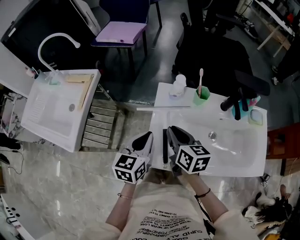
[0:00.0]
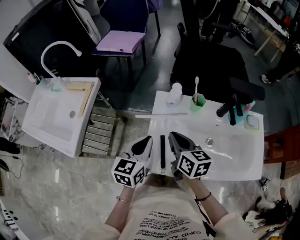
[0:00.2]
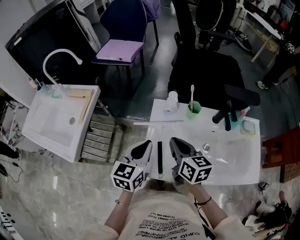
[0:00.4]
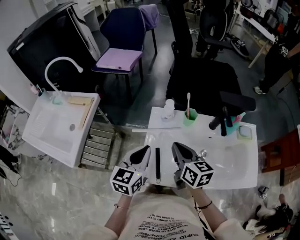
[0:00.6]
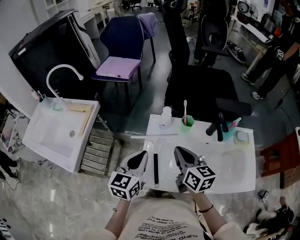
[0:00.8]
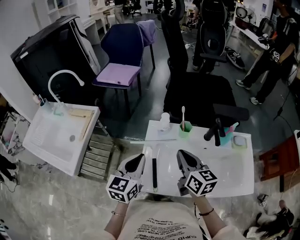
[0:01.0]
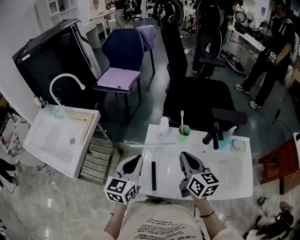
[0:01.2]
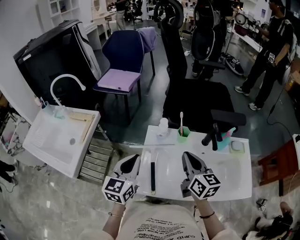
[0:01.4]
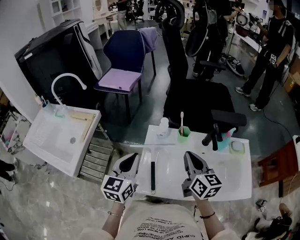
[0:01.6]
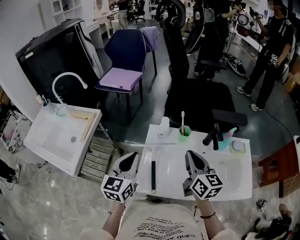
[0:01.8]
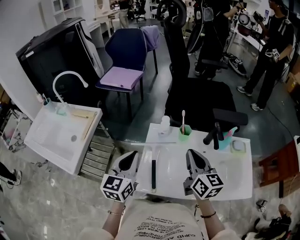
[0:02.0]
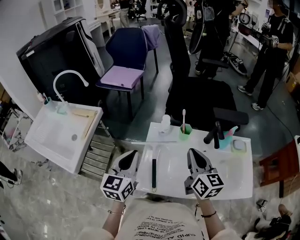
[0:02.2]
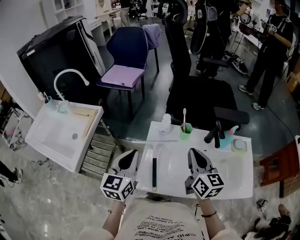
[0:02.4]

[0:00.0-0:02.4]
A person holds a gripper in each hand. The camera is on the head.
0:00.0 to 0:01.2: The left gripper heads upward, covering about 10 cm. Meanwhile the right gripper goes some 15 cm to the right and upward.
0:01.2 to 0:02.4: The grippers stay close to where they were, moving slightly.

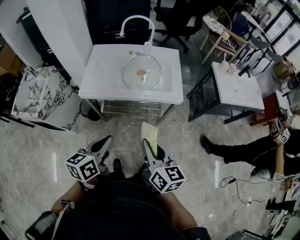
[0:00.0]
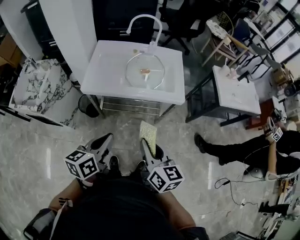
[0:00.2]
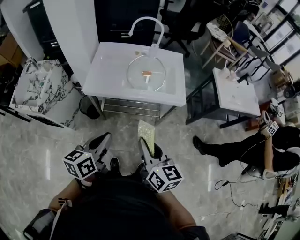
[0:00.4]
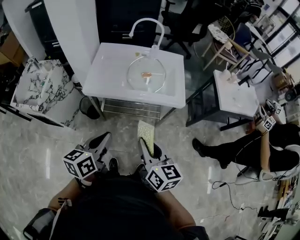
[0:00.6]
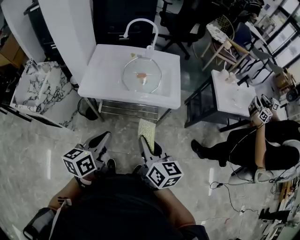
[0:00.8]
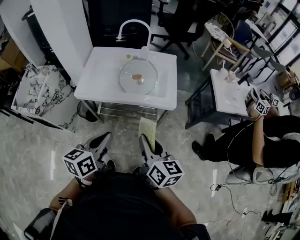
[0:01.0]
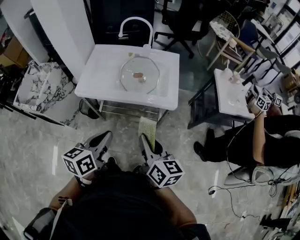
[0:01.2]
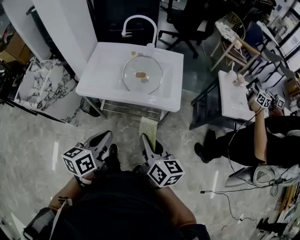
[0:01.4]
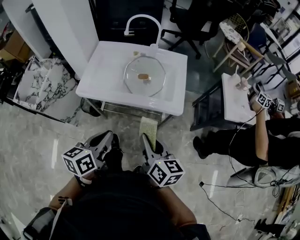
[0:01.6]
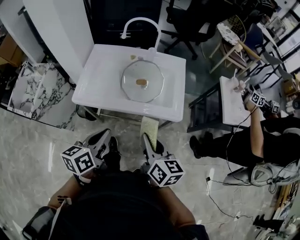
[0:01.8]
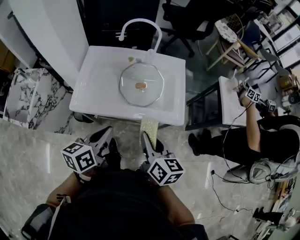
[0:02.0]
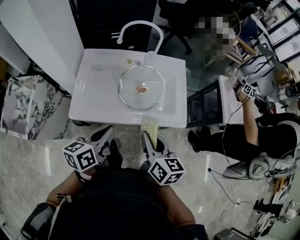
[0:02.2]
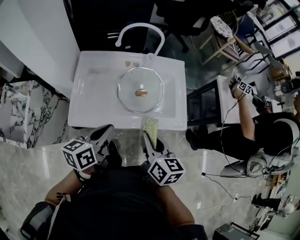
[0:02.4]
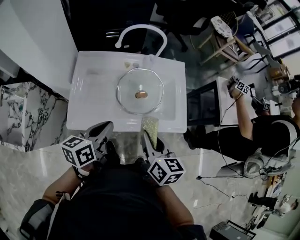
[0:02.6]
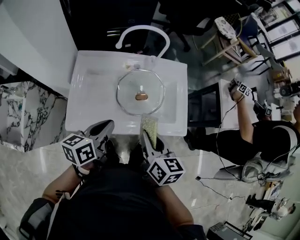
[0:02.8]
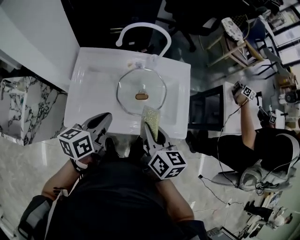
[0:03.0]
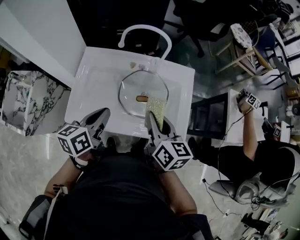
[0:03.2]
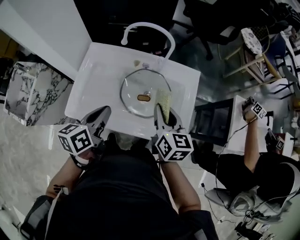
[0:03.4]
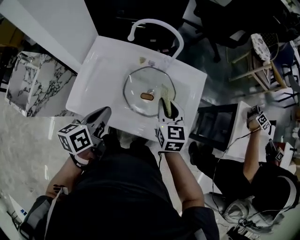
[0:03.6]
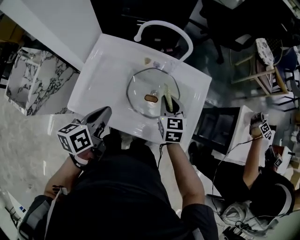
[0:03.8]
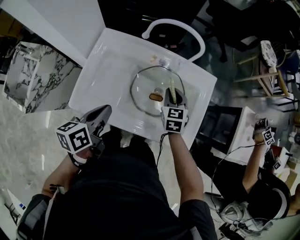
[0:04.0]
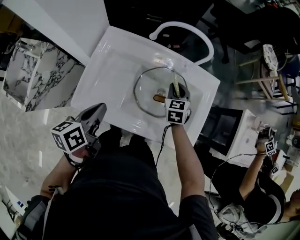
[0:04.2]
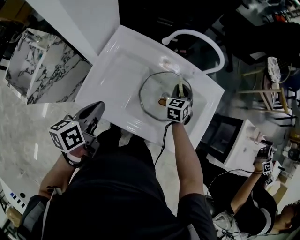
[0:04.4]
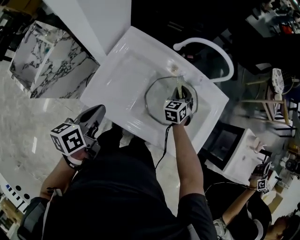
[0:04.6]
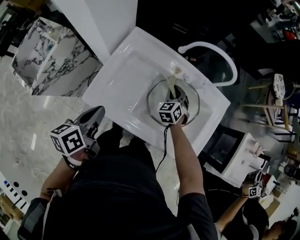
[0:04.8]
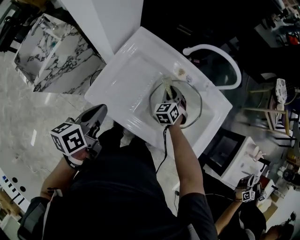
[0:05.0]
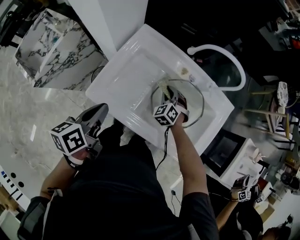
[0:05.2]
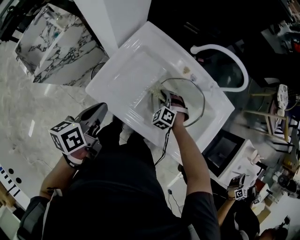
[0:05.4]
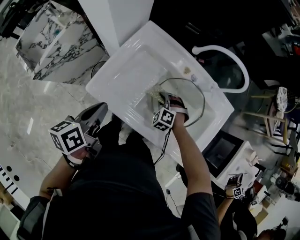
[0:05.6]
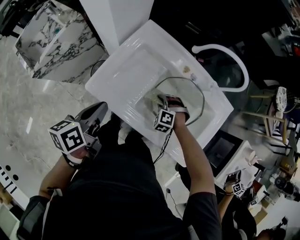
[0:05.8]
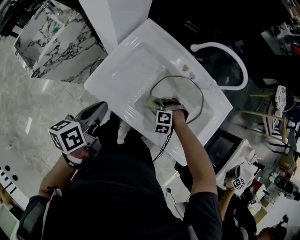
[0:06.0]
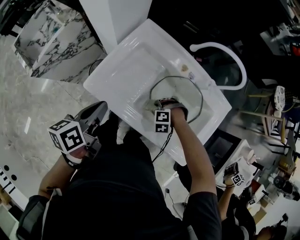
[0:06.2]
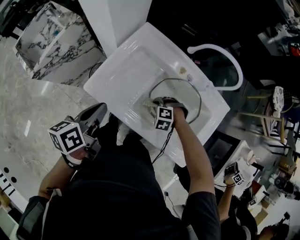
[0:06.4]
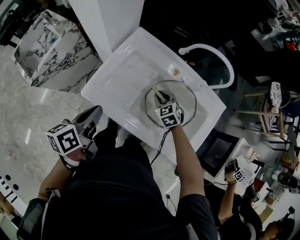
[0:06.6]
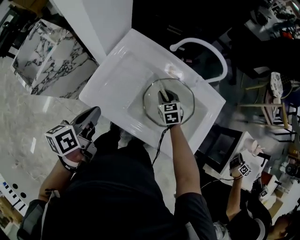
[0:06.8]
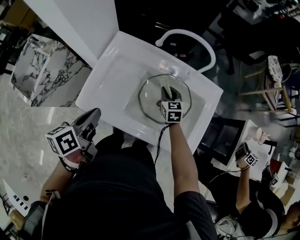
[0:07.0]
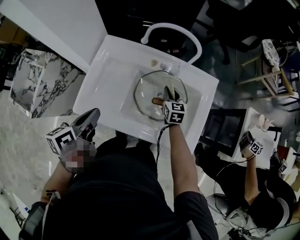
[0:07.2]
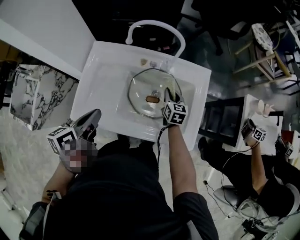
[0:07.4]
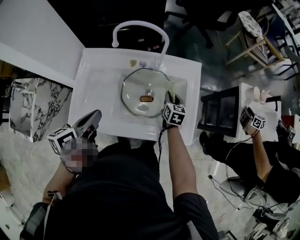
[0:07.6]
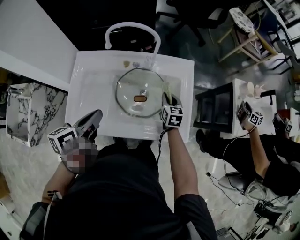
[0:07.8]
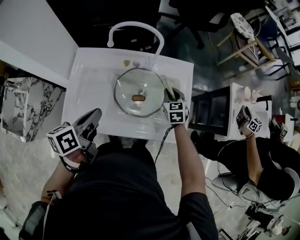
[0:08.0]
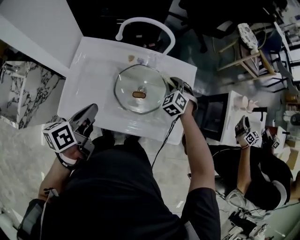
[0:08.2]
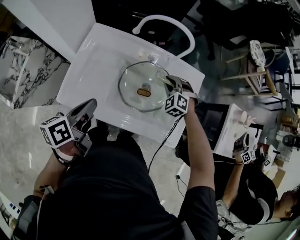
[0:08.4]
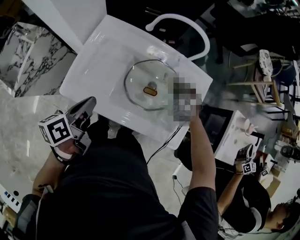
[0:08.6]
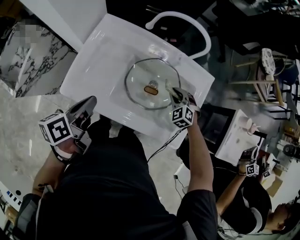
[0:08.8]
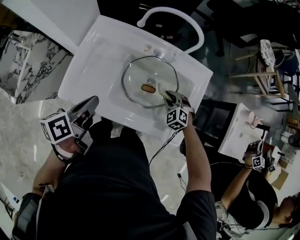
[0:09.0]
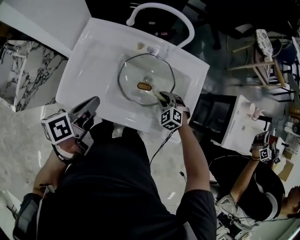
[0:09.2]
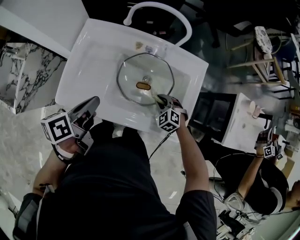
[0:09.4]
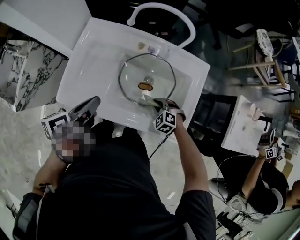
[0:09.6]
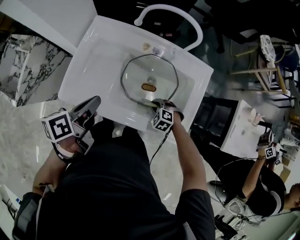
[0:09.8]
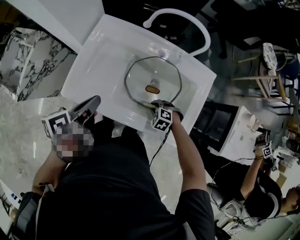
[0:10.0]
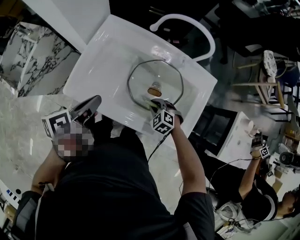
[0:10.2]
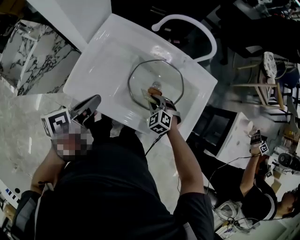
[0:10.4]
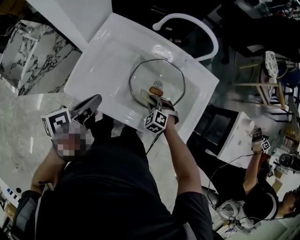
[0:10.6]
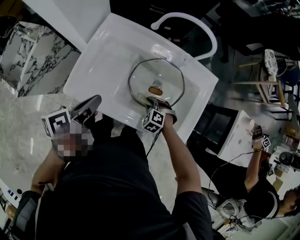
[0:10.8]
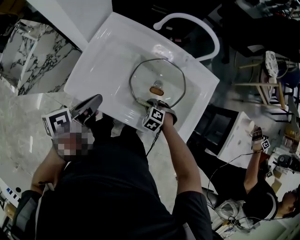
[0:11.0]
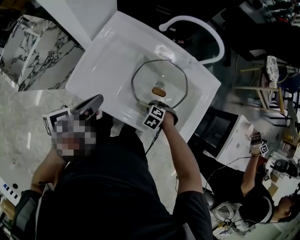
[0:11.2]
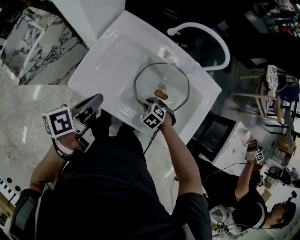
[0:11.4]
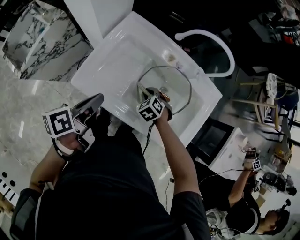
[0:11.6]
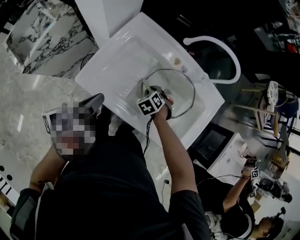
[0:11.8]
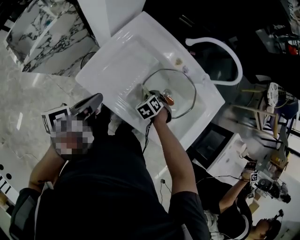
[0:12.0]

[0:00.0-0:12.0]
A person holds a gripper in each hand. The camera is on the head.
0:00.0 to 0:01.6: Both grippers travel together forward, roughly 10 cm. The left gripper travels to the right and back again, approximately 5 cm each way, while the right gripper reaches about 5 cm to the left, then returns.
0:01.6 to 0:03.0: Both grippers move forward and to the left, roughly 30 cm.
0:03.0 to 0:04.4: The right gripper goes some 35 cm forward and downward, and rotates around the line of its fingers by about 50 degrees, counterclockwise from behind, while the left gripper shifts roughly 10 cm to the left, and changes its angle by approximately 30 degrees.
0:04.4 to 0:06.0: The right gripper changes place by some 20 cm, and rolls counterclockwise, seen from behind, by about 80 degrees, while the left gripper shifts by approximately 5 cm.
0:06.0 to 0:07.6: The right gripper ends up approximately 25 cm from where it was, and rotates around the line of its fingers by some 120 degrees, clockwise from behind. Meanwhile the left gripper changes place by about 15 cm, and turns by approximately 30 degrees.
0:07.6 to 0:09.0: The left gripper shifts by some 5 cm, while the right gripper moves approximately 5 cm upward and comes back, and rotates around the line of its fingers by approximately 70 degrees, counterclockwise from behind.
0:09.0 to 0:10.4: The right gripper heads to the left, covering some 10 cm.
0:10.4 to 0:12.0: The left gripper ends up approximately 10 cm from where it was, while the right gripper moves approximately 10 cm, and changes its angle by roughly 20 degrees.

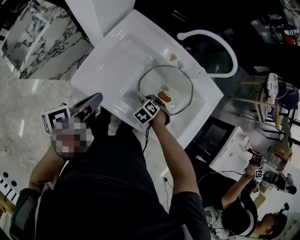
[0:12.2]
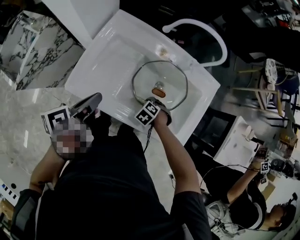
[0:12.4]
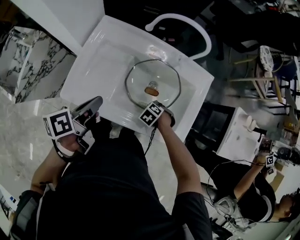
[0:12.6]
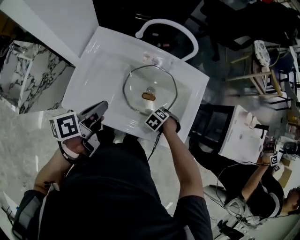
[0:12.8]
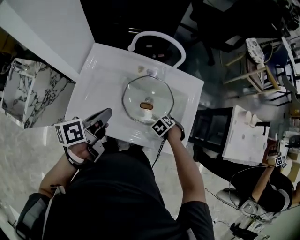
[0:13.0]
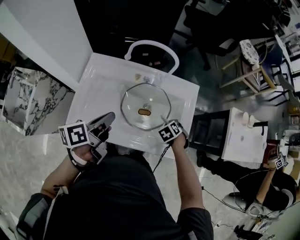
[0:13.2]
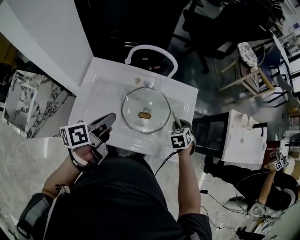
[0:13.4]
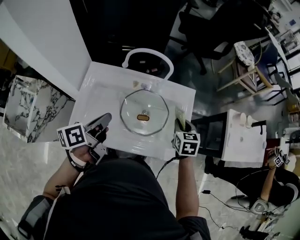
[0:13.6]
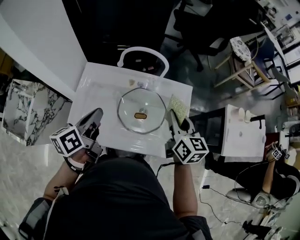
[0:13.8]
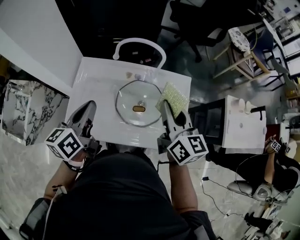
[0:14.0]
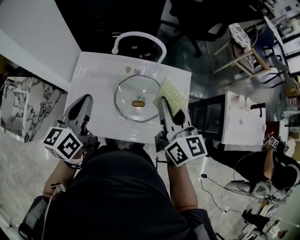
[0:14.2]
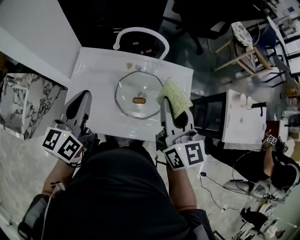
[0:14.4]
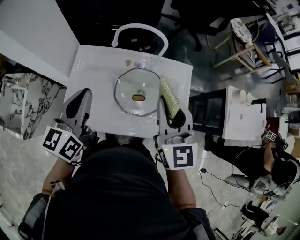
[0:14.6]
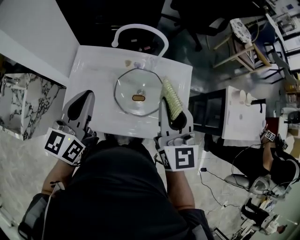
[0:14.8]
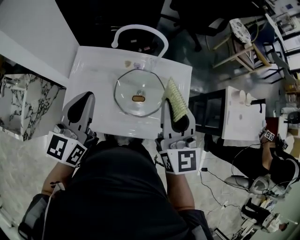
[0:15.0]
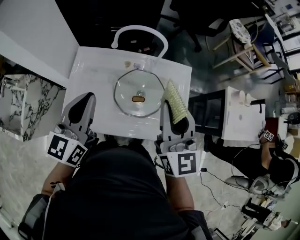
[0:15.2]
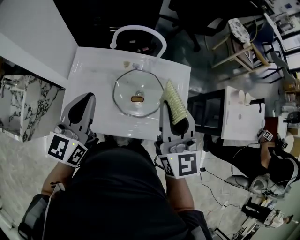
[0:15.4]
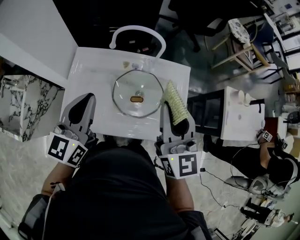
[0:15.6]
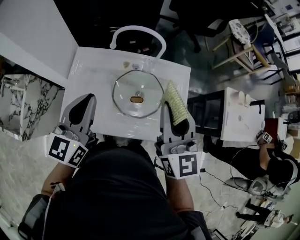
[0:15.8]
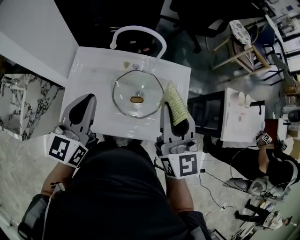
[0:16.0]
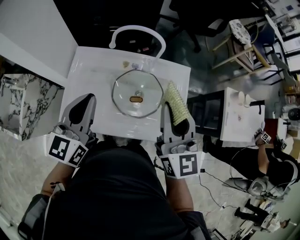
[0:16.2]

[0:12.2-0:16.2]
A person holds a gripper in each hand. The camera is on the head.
0:12.2 to 0:13.6: The right gripper shifts roughly 25 cm upward, and rolls clockwise, seen from behind, by some 60 degrees, while the left gripper changes place by roughly 15 cm, and changes its angle by roughly 20 degrees.
0:13.6 to 0:14.8: The left gripper goes some 10 cm upward, and rolls clockwise, seen from behind, by about 40 degrees. The right gripper heads upward and to the left, covering approximately 25 cm, and tips its fingers upward by some 40 degrees.
0:14.8 to 0:16.2: The grippers move only a little.

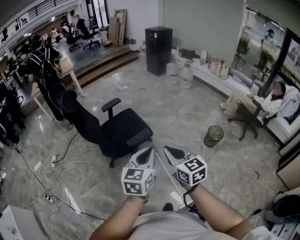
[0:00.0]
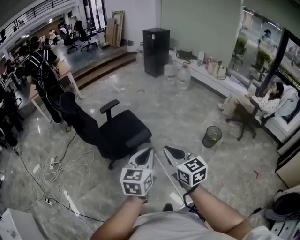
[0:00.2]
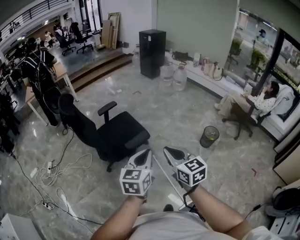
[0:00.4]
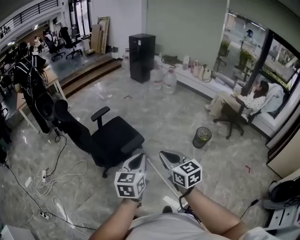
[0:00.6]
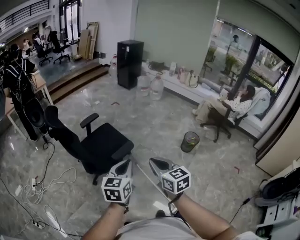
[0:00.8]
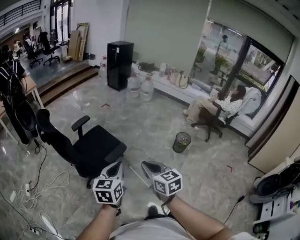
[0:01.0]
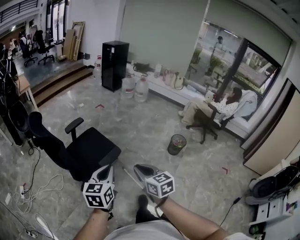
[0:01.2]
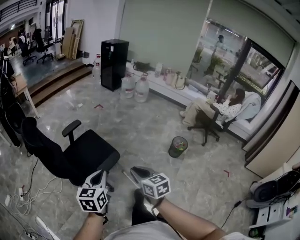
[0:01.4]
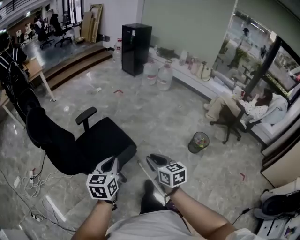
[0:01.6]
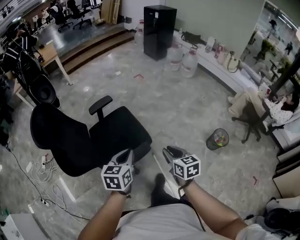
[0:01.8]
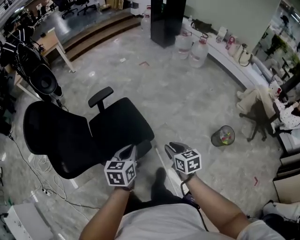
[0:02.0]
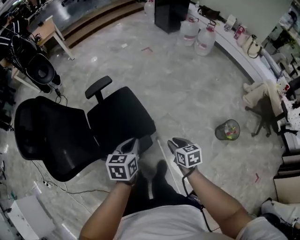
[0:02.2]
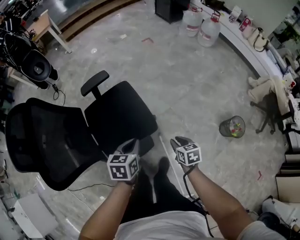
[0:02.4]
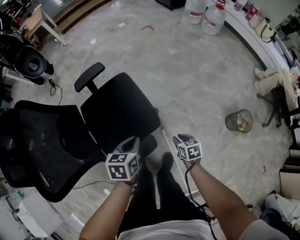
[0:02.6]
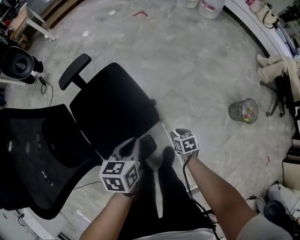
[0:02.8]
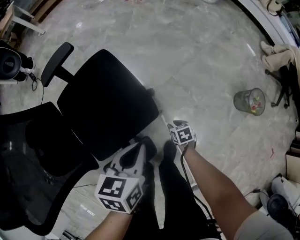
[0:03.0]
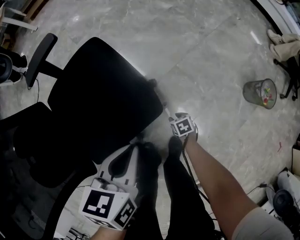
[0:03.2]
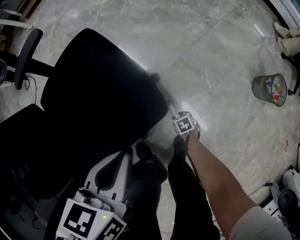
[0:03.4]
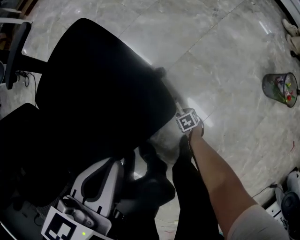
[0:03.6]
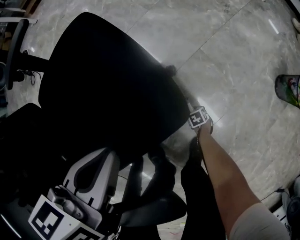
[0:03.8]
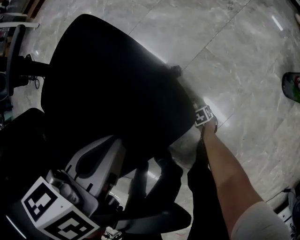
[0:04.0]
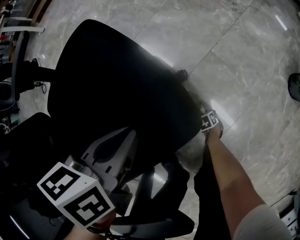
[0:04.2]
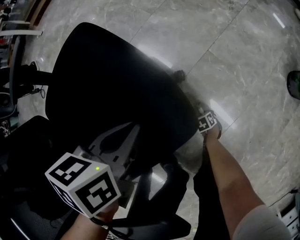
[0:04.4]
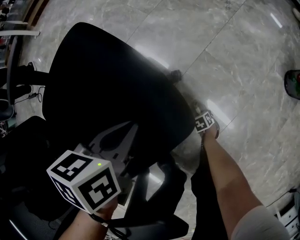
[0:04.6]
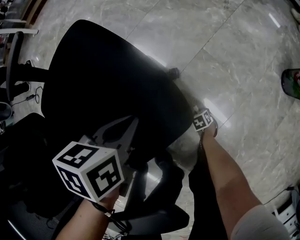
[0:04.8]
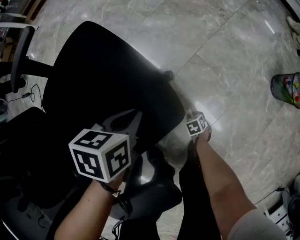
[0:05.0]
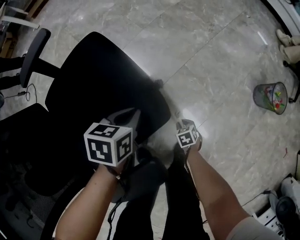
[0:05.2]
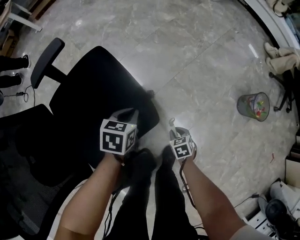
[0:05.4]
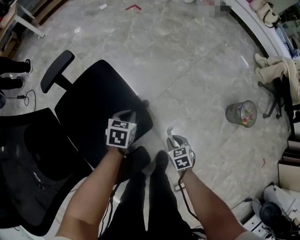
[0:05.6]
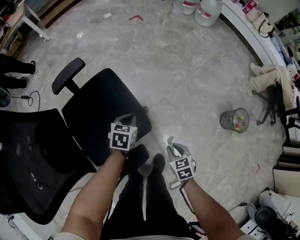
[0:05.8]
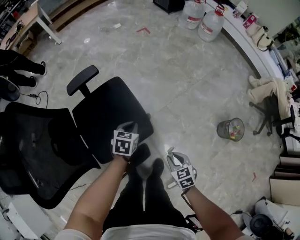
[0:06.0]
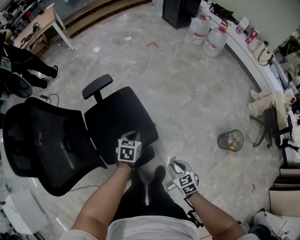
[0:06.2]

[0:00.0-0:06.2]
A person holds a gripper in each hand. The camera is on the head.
0:00.0 to 0:01.6: The right gripper goes about 25 cm forward and downward. The left gripper goes some 30 cm forward, to the left and downward.
0:01.6 to 0:03.2: The right gripper heads downward, covering some 80 cm, and tips its fingers downward by some 40 degrees. Meanwhile the left gripper moves downward and forward, some 50 cm, and changes its angle by roughly 30 degrees.
0:03.2 to 0:04.6: Both grippers move downward, approximately 25 cm.
0:04.6 to 0:06.2: The right gripper travels upward by roughly 80 cm, and tilts its fingers some 30 degrees upward. The left gripper shifts roughly 30 cm upward.
